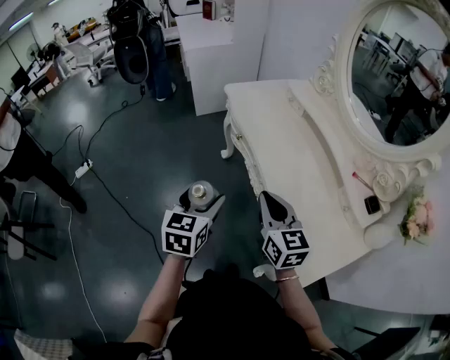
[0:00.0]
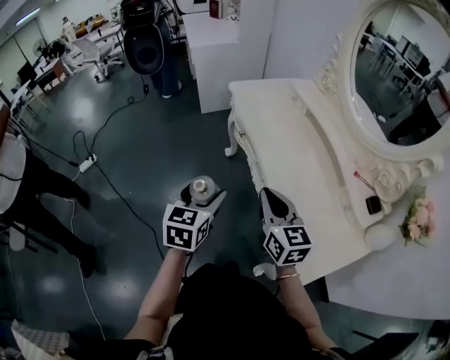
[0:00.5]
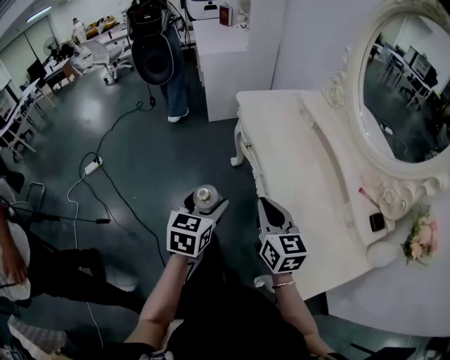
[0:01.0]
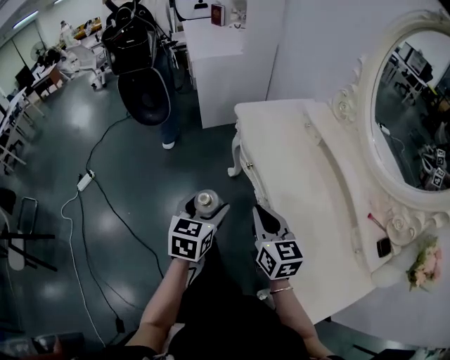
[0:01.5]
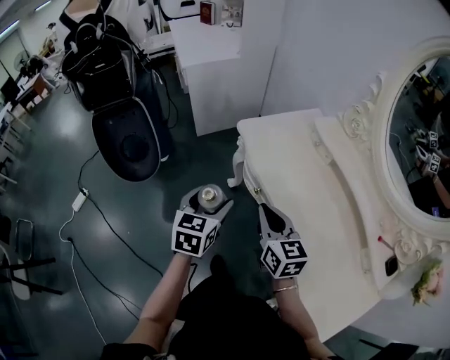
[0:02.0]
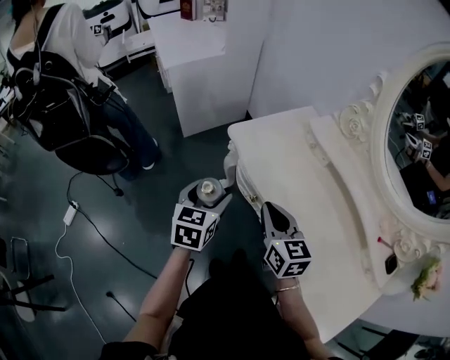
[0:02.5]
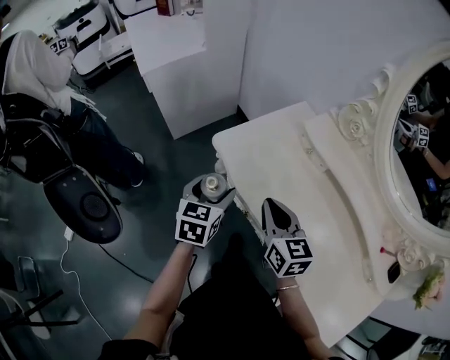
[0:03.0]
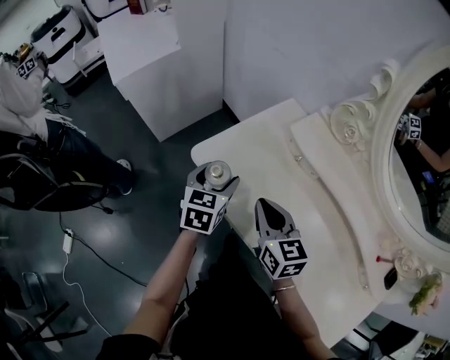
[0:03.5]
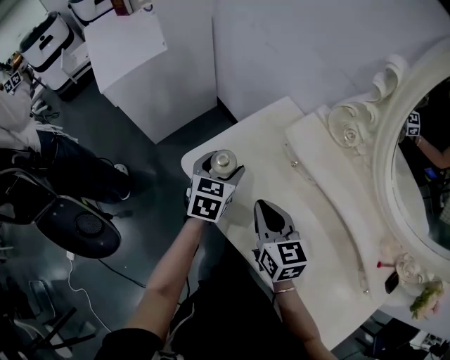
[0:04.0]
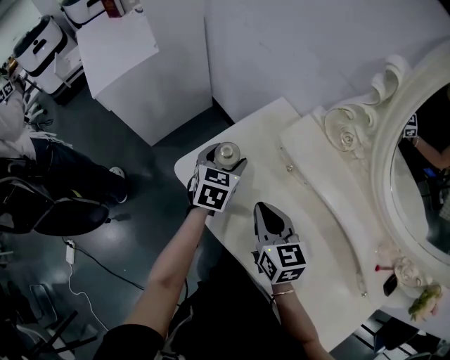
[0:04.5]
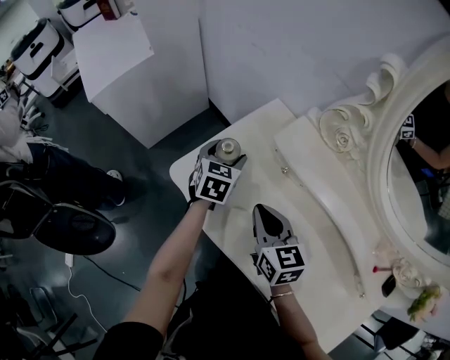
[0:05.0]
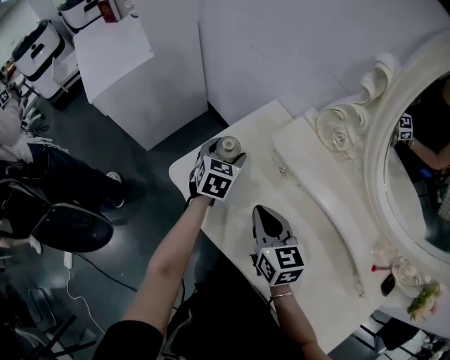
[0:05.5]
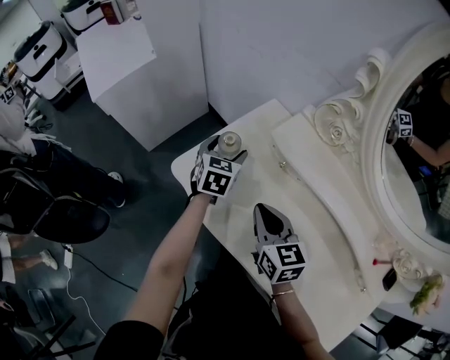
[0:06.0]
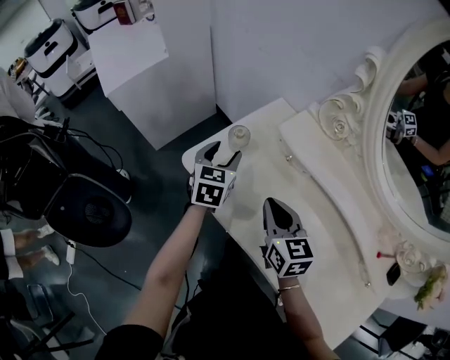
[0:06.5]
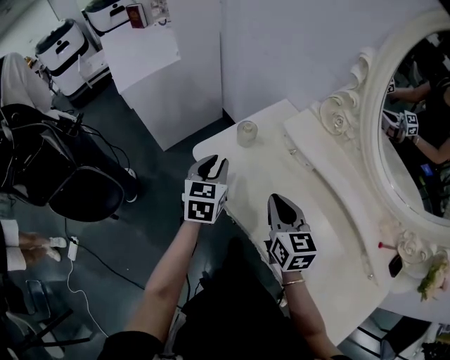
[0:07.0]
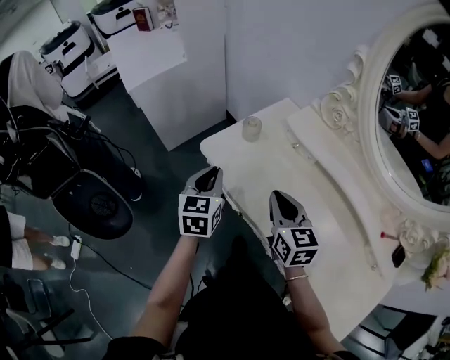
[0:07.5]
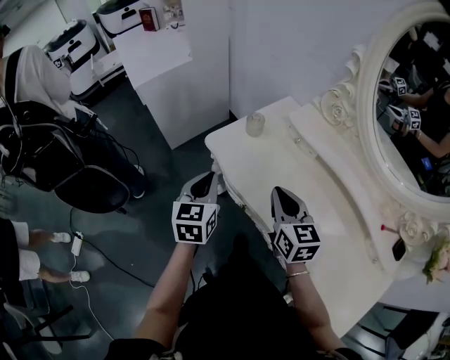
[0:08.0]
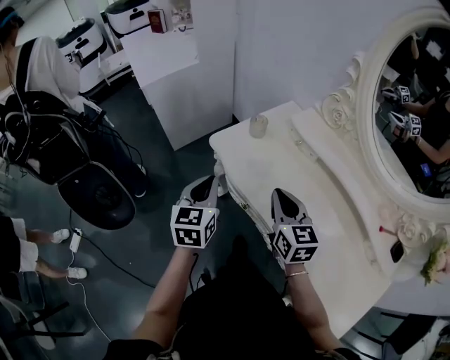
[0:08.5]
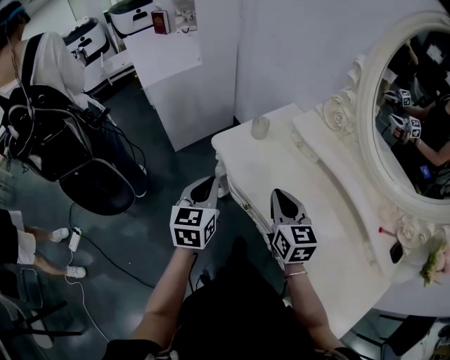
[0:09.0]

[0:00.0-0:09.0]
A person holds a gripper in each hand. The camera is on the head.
0:00.0 to 0:02.0: The grippers both shift forward by roughly 25 cm.
0:02.0 to 0:04.5: The right gripper moves forward, about 25 cm. The left gripper shifts roughly 40 cm forward and to the right, and changes its angle by approximately 20 degrees.
0:04.5 to 0:07.0: The right gripper goes approximately 5 cm backward. The left gripper shifts about 15 cm backward, to the left and upward, and closes.
0:07.0 to 0:09.0: The right gripper goes approximately 5 cm backward; the left gripper moves backward and to the left, some 15 cm.

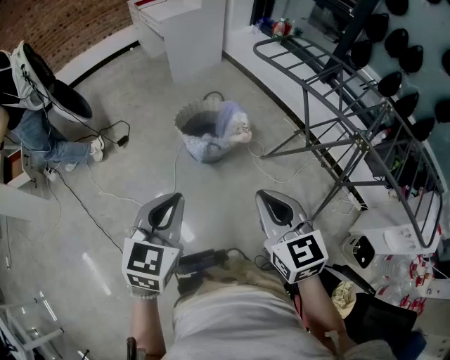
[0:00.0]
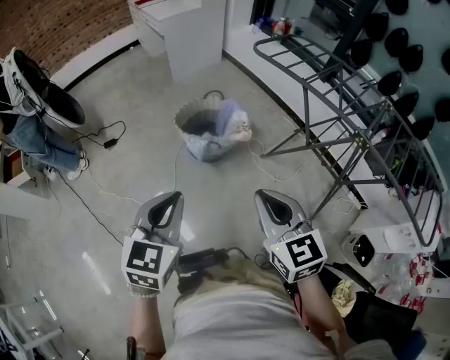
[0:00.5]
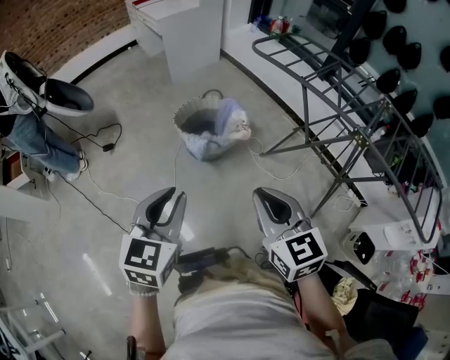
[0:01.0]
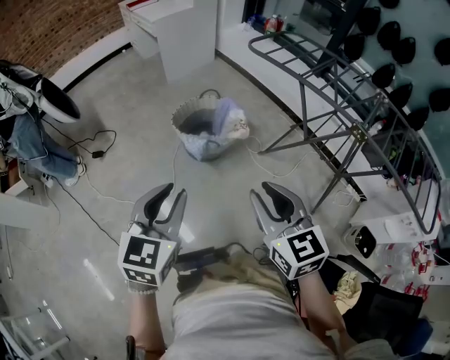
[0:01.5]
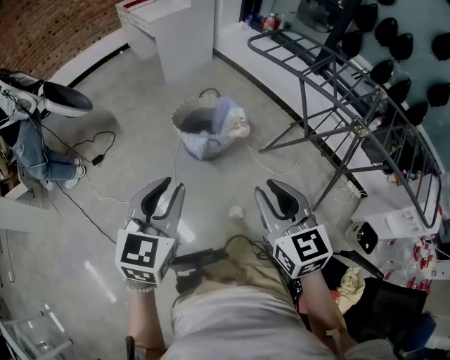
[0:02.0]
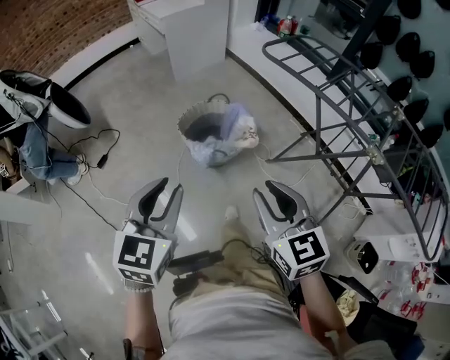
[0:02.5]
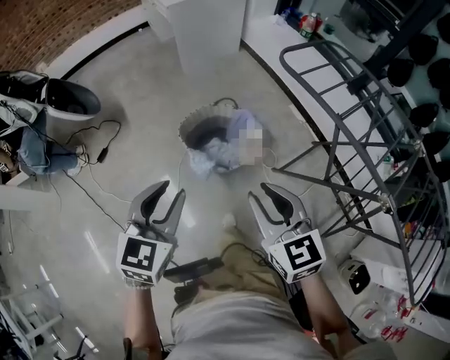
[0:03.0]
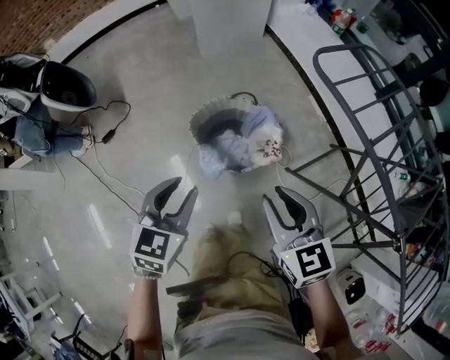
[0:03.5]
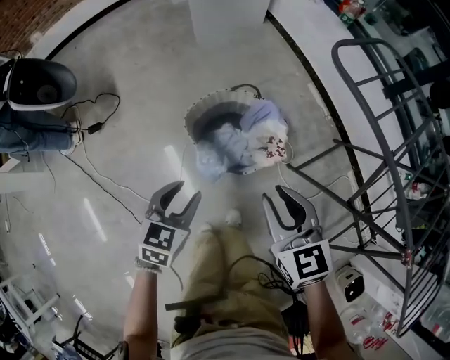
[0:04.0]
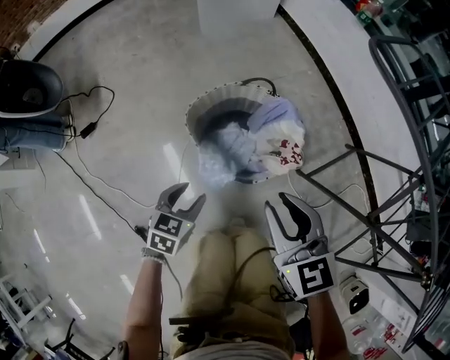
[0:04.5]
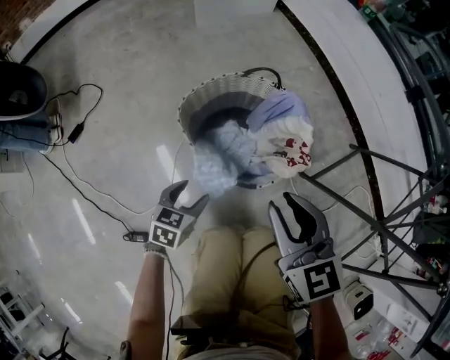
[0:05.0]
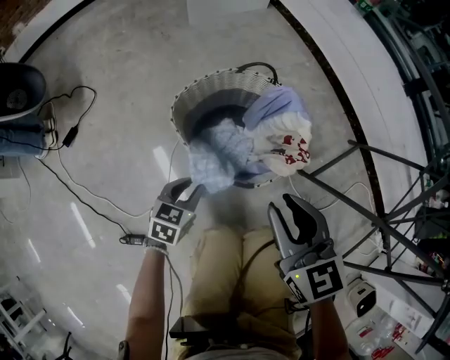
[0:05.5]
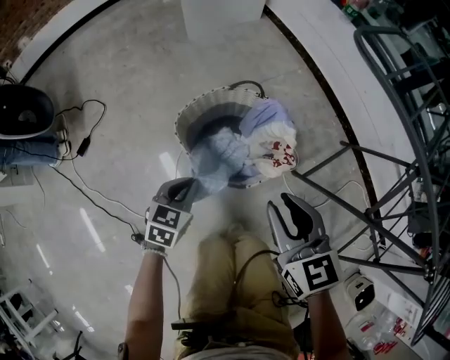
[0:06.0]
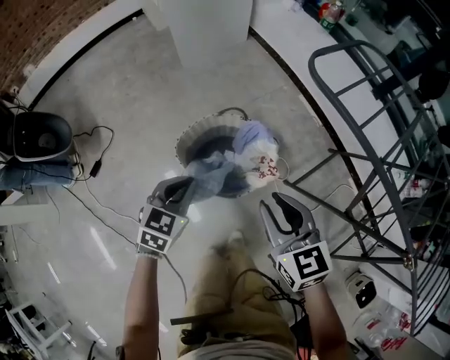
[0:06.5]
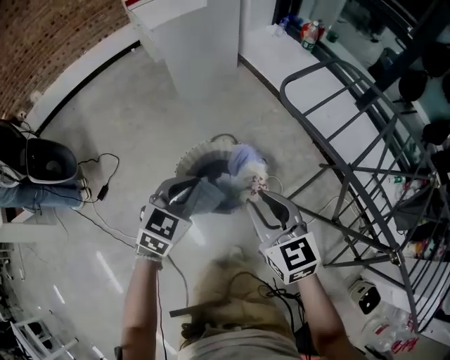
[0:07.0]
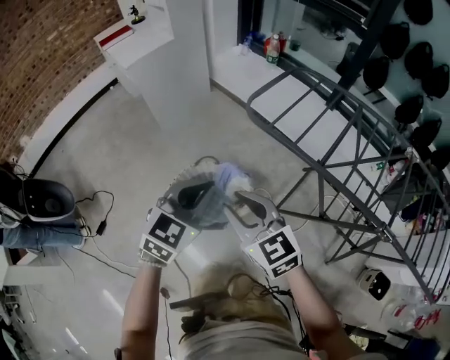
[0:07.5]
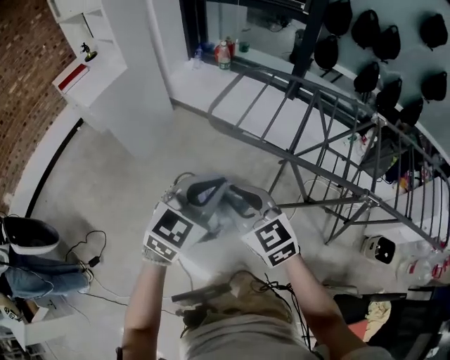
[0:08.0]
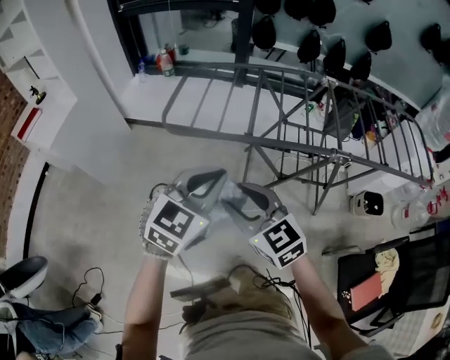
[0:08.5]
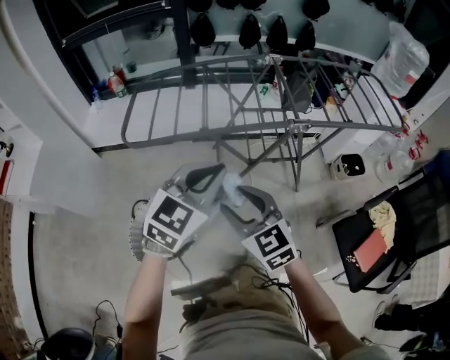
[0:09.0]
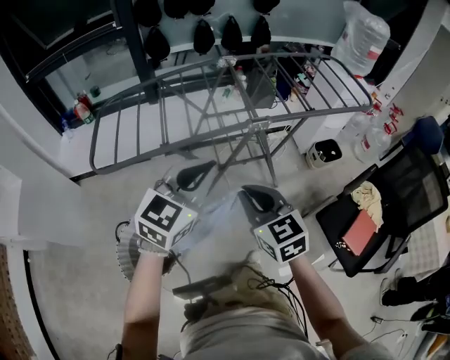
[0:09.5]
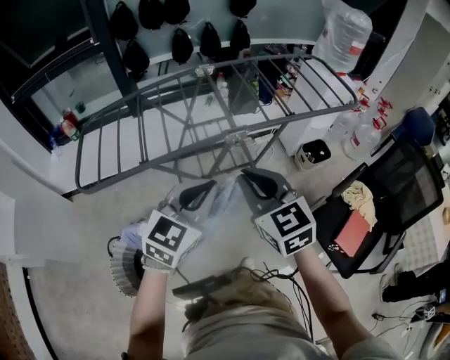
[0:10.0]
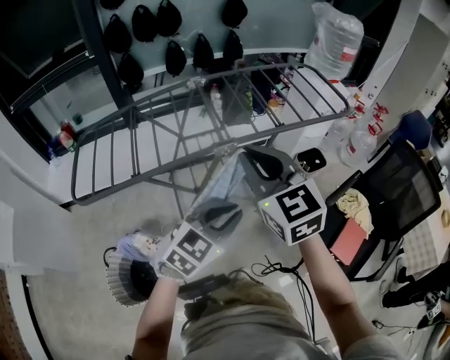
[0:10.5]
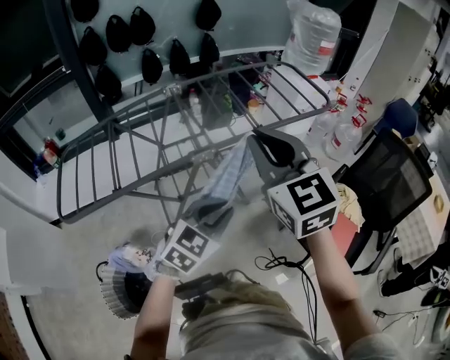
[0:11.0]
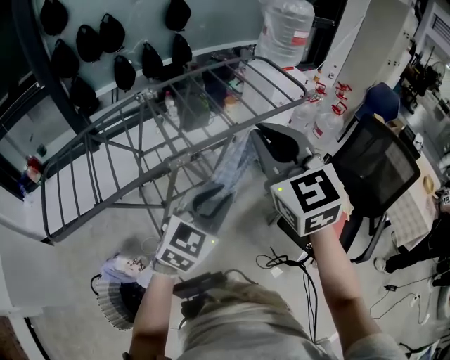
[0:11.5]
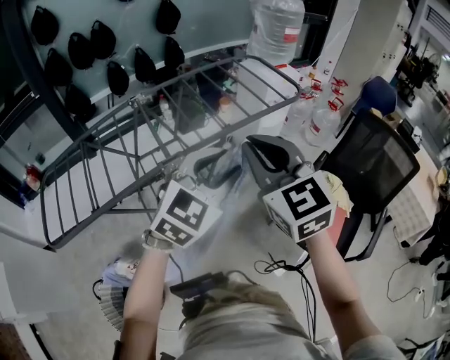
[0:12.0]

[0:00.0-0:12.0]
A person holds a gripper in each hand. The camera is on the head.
0:00.0 to 0:02.0: The right gripper opens. The left gripper opens up.
0:02.0 to 0:04.0: The grippers both shift forward and downward by approximately 40 cm. The left gripper changes its angle by some 20 degrees.
0:04.0 to 0:06.0: The left gripper shifts approximately 20 cm downward, and closes up; the right gripper moves downward, some 10 cm.
0:06.0 to 0:08.0: The right gripper moves upward, about 25 cm, while the left gripper is displaced upward by about 50 cm, and turns by about 60 degrees.
0:08.0 to 0:10.0: The left gripper changes place by roughly 30 cm, and changes its angle by about 40 degrees; the right gripper moves approximately 40 cm, turns by approximately 50 degrees, and closes its fingers.
0:10.0 to 0:12.0: The left gripper shifts some 25 cm to the right and forward, rotates about 20 degrees, and opens, while the right gripper heads to the right, upward and forward, covering approximately 20 cm.

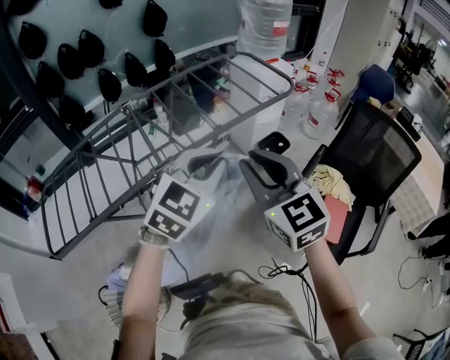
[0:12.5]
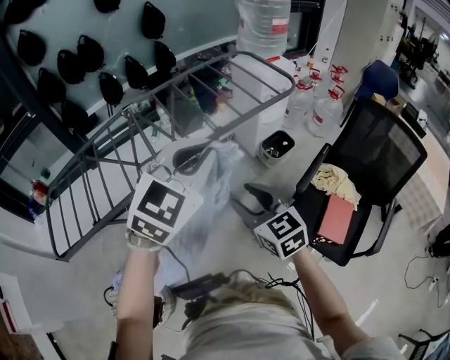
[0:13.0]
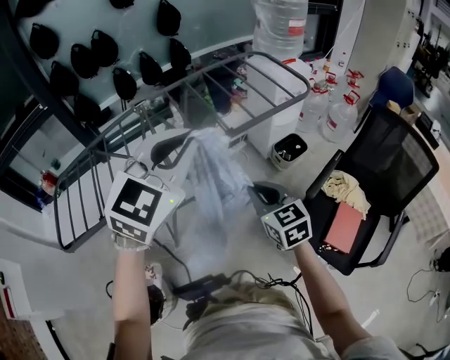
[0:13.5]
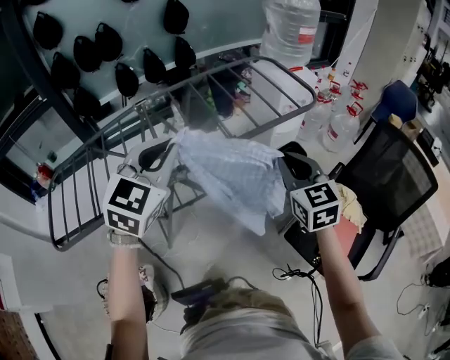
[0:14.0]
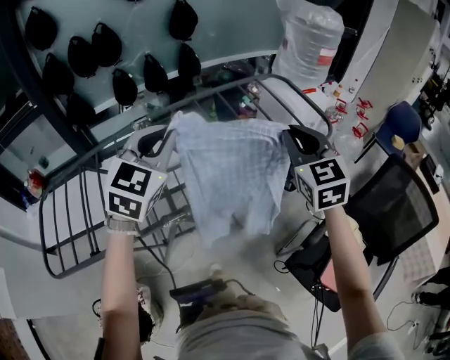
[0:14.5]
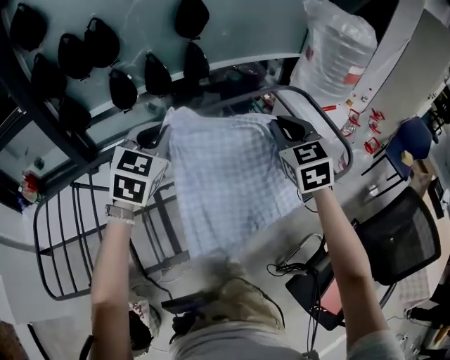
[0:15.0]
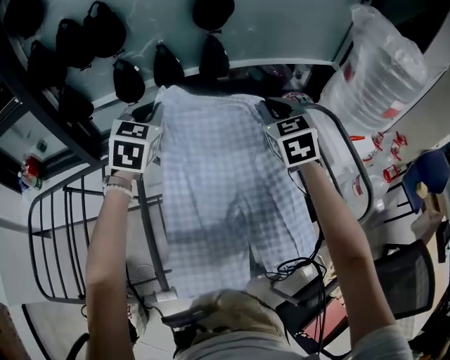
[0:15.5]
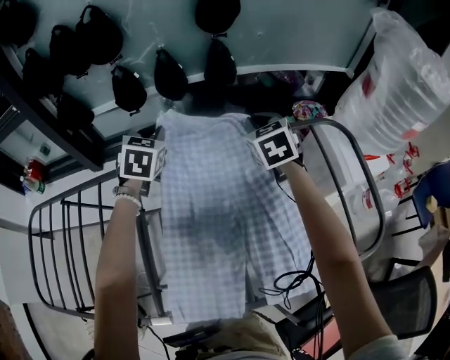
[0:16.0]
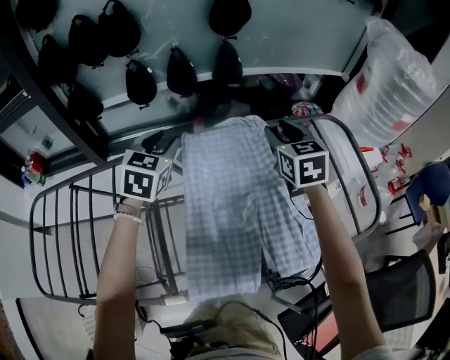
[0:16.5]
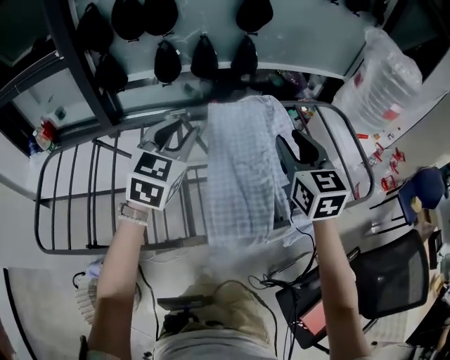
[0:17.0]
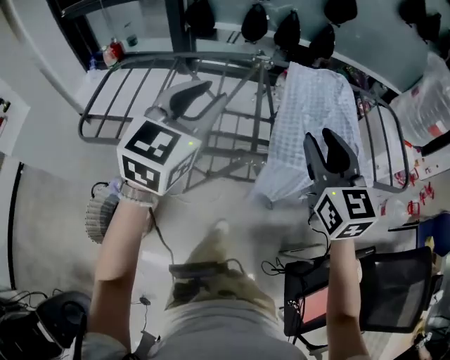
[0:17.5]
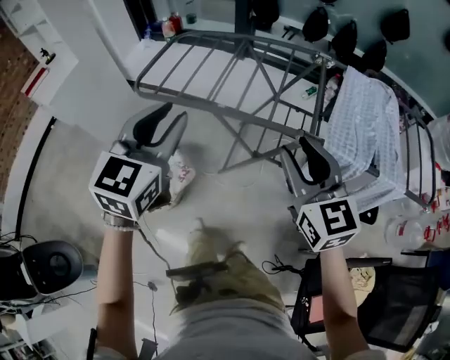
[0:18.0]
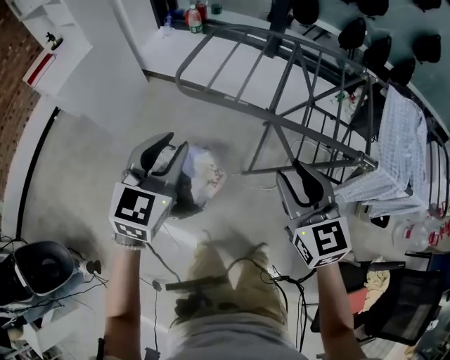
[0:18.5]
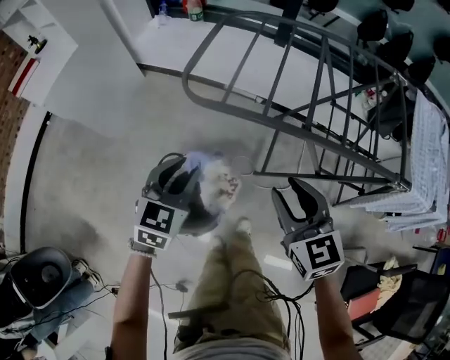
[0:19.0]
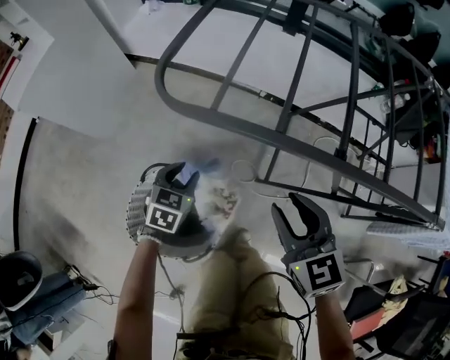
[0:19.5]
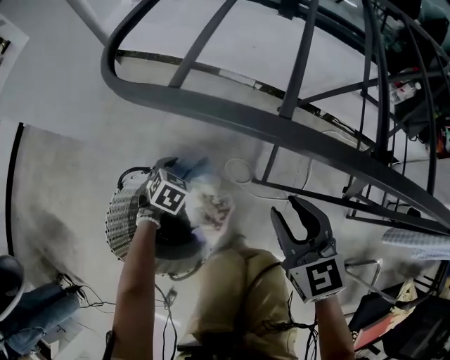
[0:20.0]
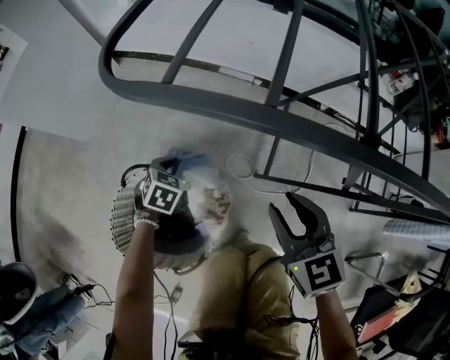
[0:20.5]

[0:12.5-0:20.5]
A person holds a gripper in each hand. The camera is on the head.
0:12.5 to 0:14.5: The left gripper moves forward and to the left, approximately 30 cm, and swivels approximately 20 degrees; the right gripper shifts approximately 30 cm forward, and opens, then closes once more.
0:14.5 to 0:16.5: The right gripper moves forward, roughly 35 cm, and opens, while the left gripper shifts approximately 35 cm forward and downward, turns by roughly 30 degrees, and opens its fingers.
0:16.5 to 0:18.5: The pair of grippers is taken approximately 80 cm. The left gripper swivels about 30 degrees. The right gripper swivels some 40 degrees.
0:18.5 to 0:20.5: The left gripper is displaced downward by approximately 60 cm, angles its fingers downward, by approximately 40 degrees, and opens, then closes once more. Meanwhile the right gripper moves downward, some 35 cm.
